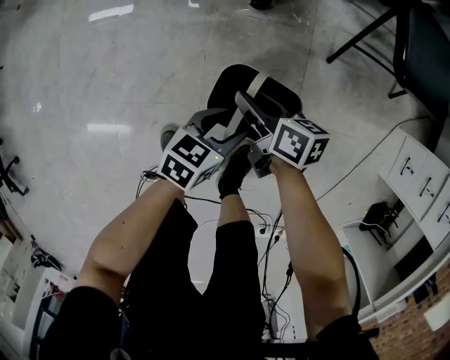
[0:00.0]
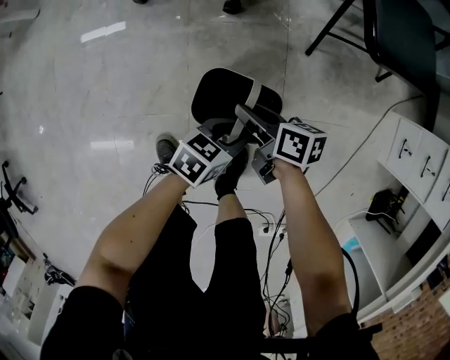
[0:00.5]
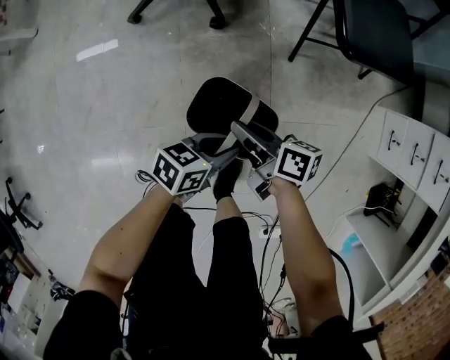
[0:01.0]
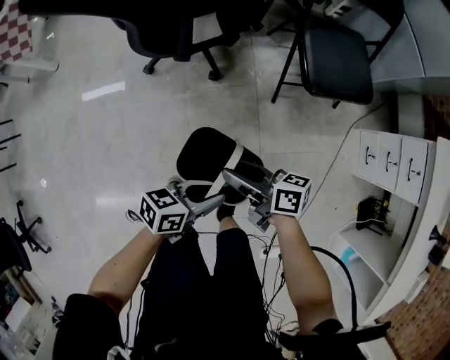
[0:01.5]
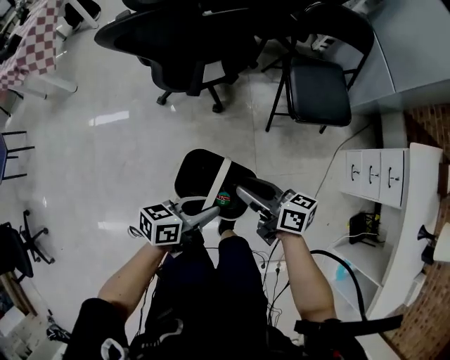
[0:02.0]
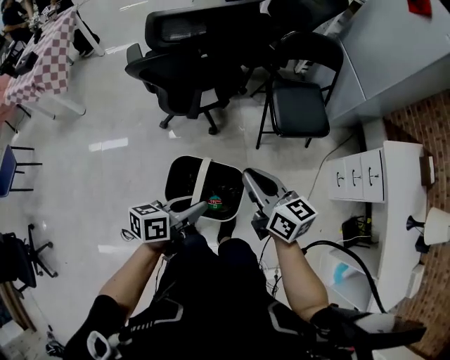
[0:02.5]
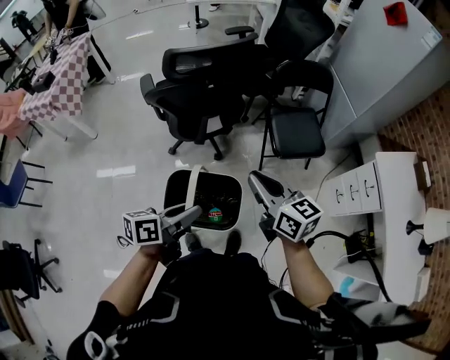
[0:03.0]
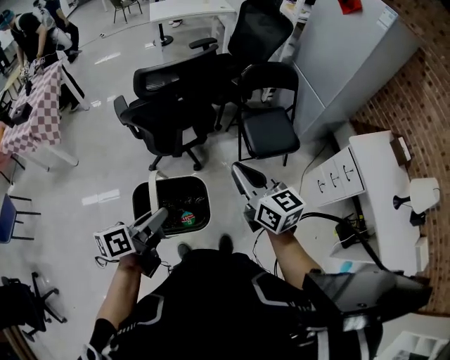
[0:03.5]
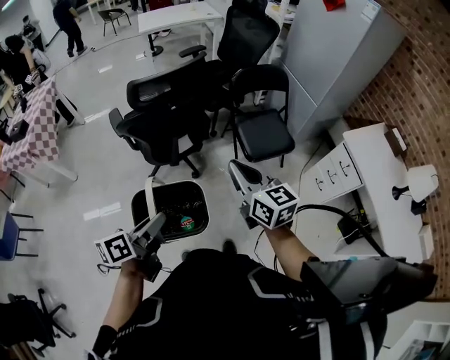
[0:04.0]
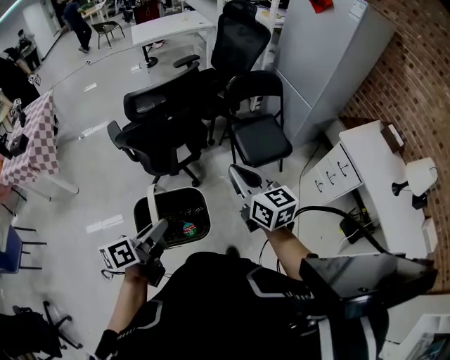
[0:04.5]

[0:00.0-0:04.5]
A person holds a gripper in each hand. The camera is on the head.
0.0 to 2.0 s: Both grippers travel together upward, roughly 40 cm. The left gripper swivels roughly 20 degrees, and closes up.
2.0 to 4.5 s: The right gripper is displaced upward by roughly 30 cm, rotates about 50 degrees, and closes its fingers. The left gripper heads upward and to the left, covering some 30 cm, and changes its angle by about 20 degrees.

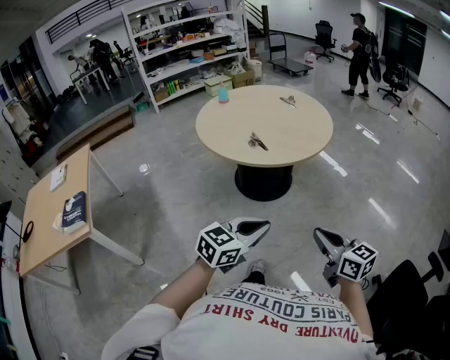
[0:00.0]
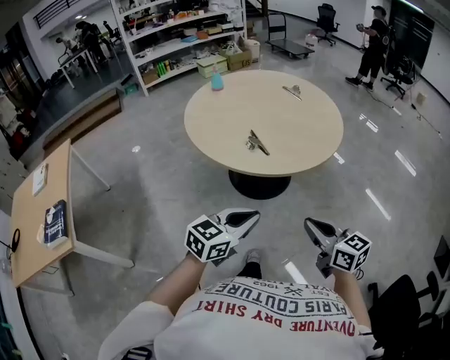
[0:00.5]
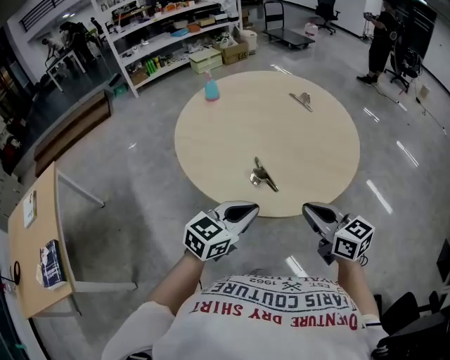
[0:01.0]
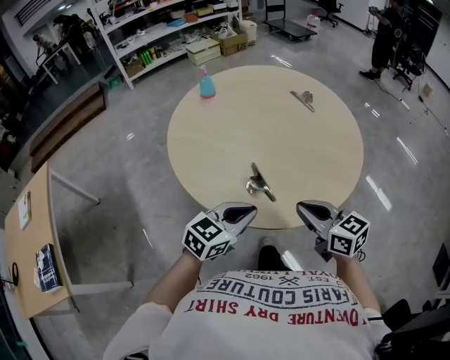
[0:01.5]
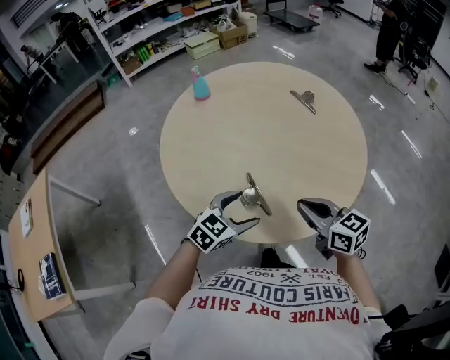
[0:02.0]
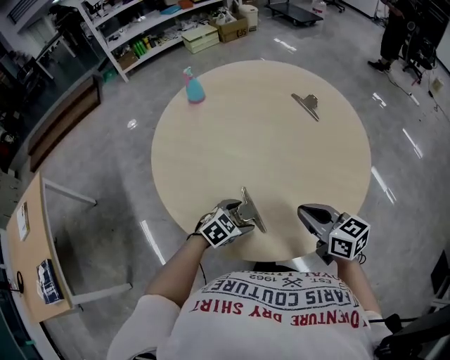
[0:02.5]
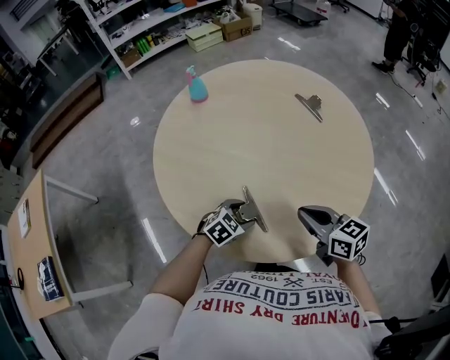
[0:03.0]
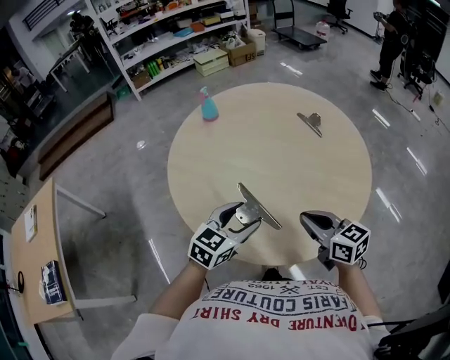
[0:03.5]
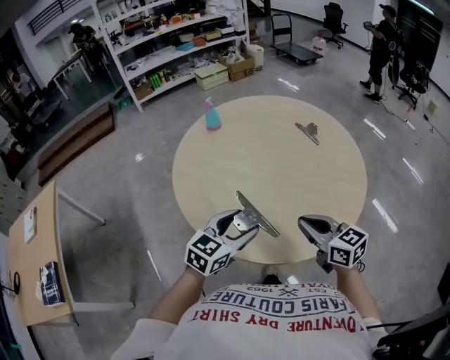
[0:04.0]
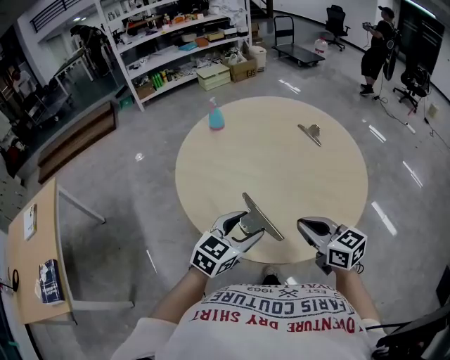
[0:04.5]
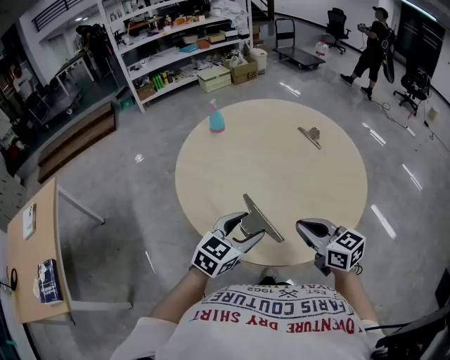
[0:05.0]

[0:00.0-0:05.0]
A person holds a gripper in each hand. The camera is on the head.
0.0 to 2.5 s: The pair of grippers is taken forward, some 60 cm. The left gripper tips its fingers downward by some 30 degrees, and opens.
2.5 to 5.0 s: The left gripper is displaced upward by about 20 cm, and changes its angle by approximately 30 degrees. The right gripper heads backward and upward, covering about 10 cm.

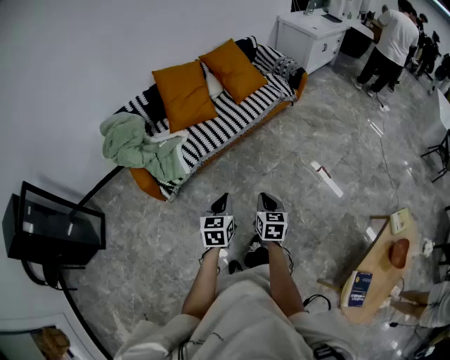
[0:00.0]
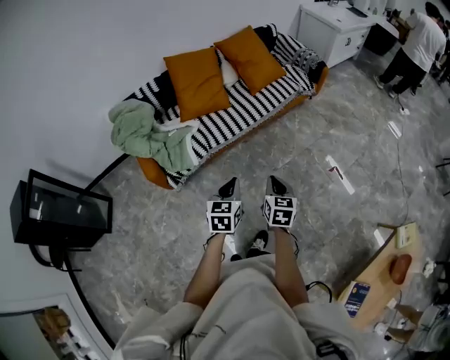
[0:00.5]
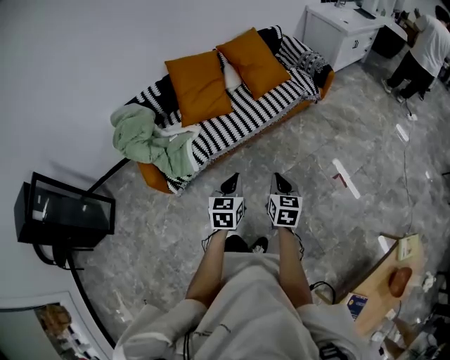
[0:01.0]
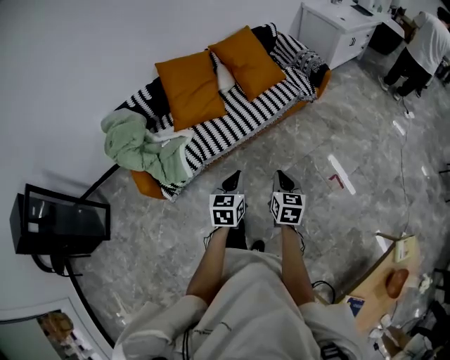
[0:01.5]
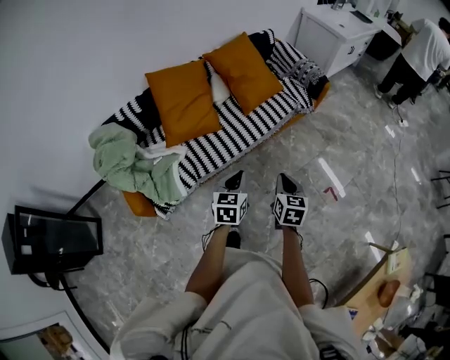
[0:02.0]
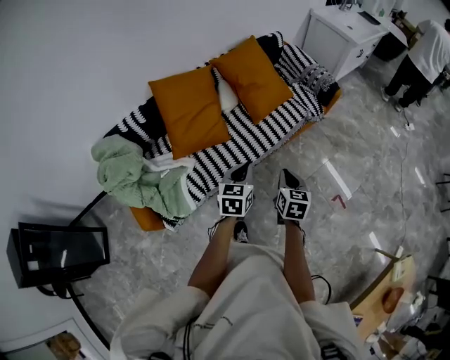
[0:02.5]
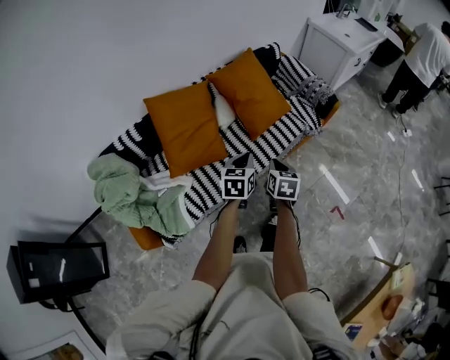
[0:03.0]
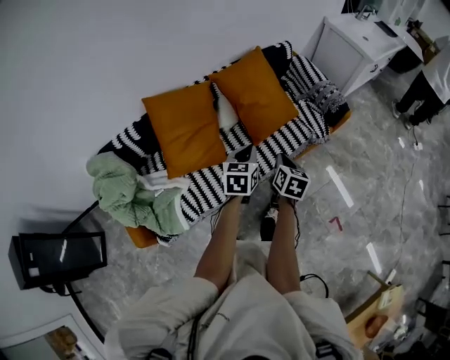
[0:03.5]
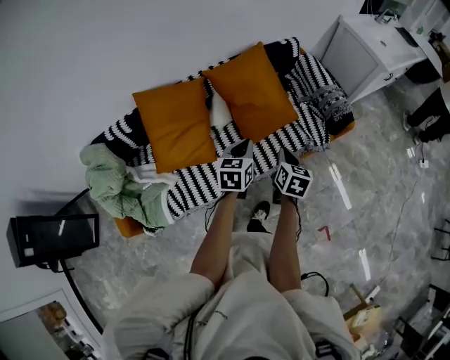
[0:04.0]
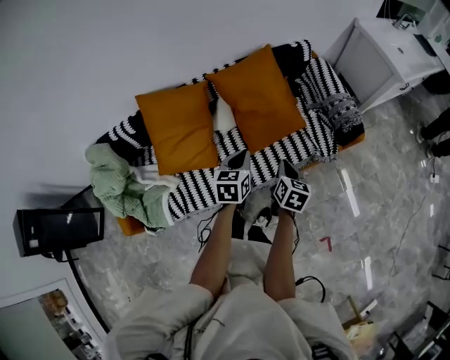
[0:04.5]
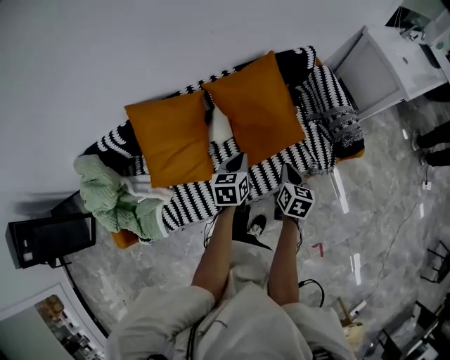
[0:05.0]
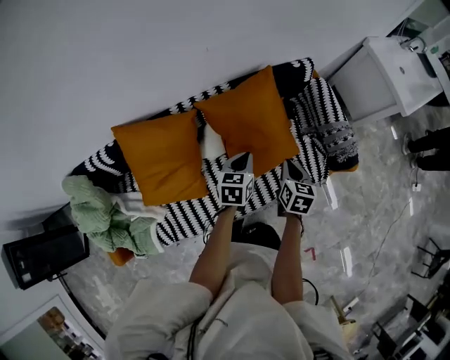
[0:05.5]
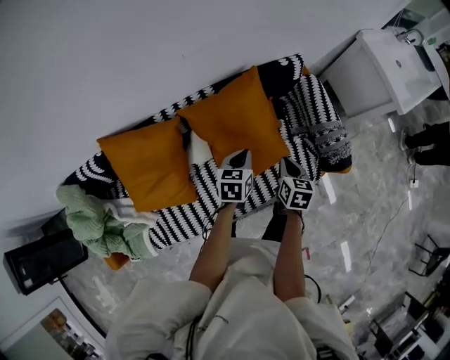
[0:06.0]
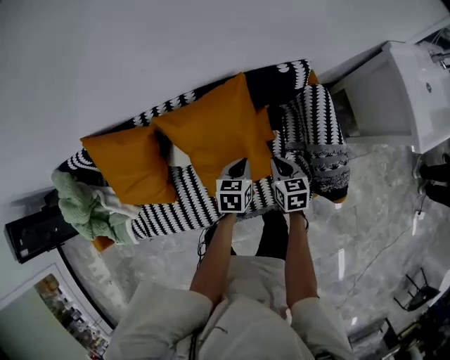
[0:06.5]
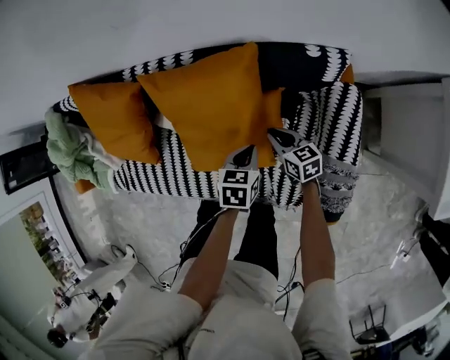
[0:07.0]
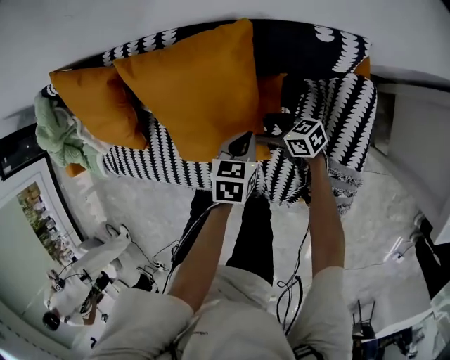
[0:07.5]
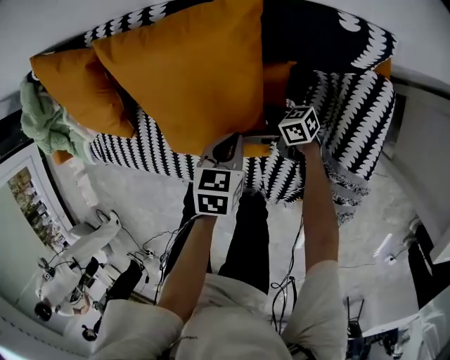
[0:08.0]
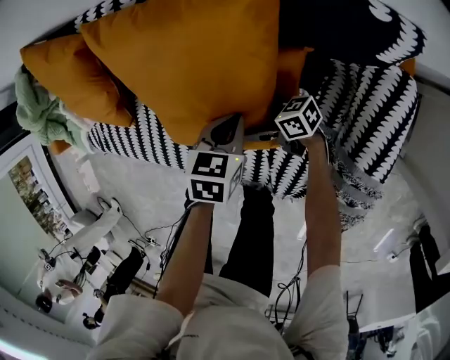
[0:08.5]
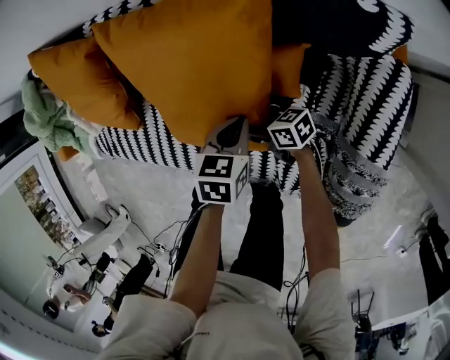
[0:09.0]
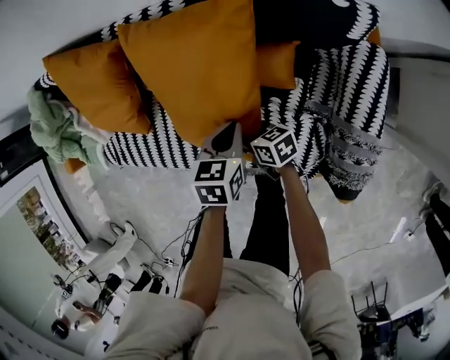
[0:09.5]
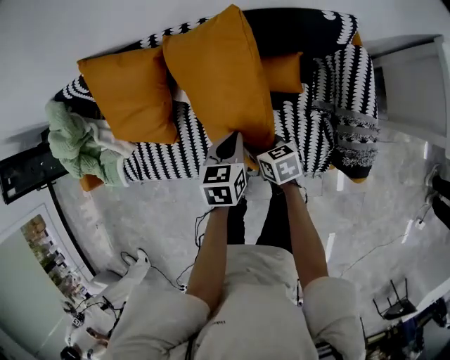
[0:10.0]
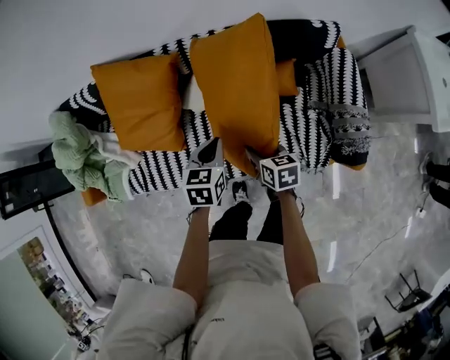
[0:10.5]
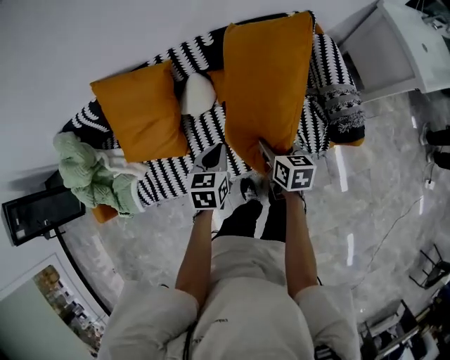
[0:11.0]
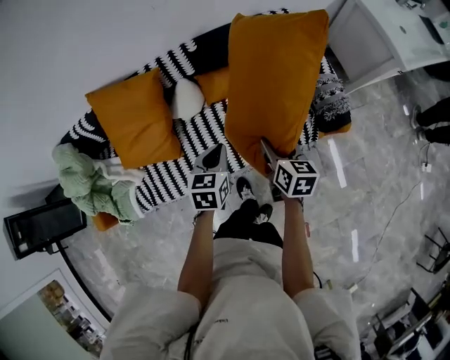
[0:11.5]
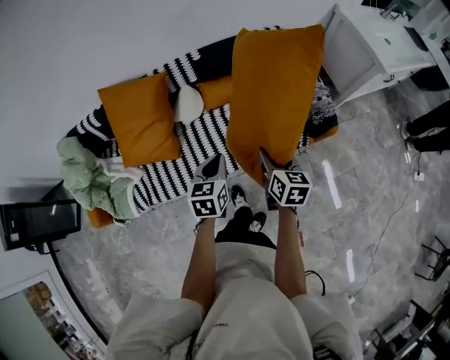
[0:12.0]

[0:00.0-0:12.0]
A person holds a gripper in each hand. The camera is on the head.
0.0 to 2.0 s: Both grippers move forward, about 35 cm.
2.0 to 4.0 s: The pair of grippers is taken forward, about 50 cm.
4.0 to 6.0 s: The grippers both shift forward by roughly 30 cm.
6.0 to 8.0 s: Both grippers travel together downward, approximately 30 cm. The left gripper turns by about 30 degrees, while the right gripper tilts its fingers about 30 degrees upward, and opens.
8.0 to 10.0 s: The left gripper shifts approximately 25 cm to the left and upward. Meanwhile the right gripper heads upward and to the left, covering approximately 25 cm, tips its fingers downward by some 30 degrees, and closes up.
10.0 to 12.0 s: The right gripper ends up about 30 cm from where it was, and turns by roughly 50 degrees, while the left gripper changes place by about 30 cm, and changes its angle by roughly 20 degrees.

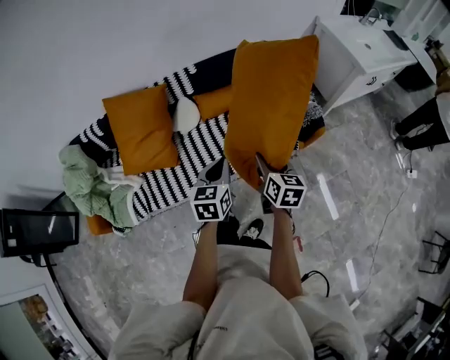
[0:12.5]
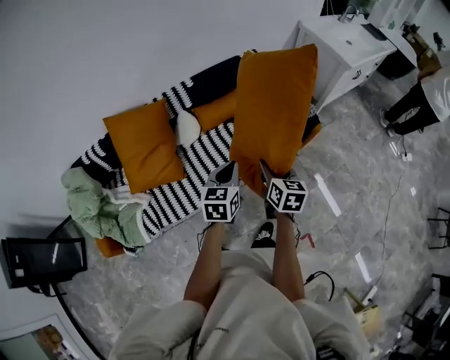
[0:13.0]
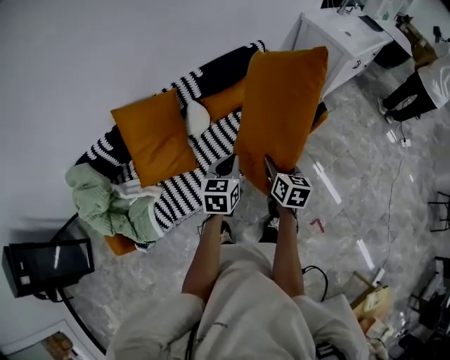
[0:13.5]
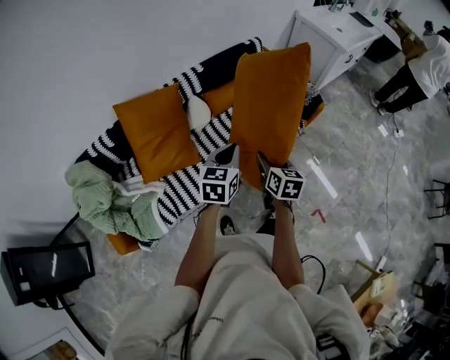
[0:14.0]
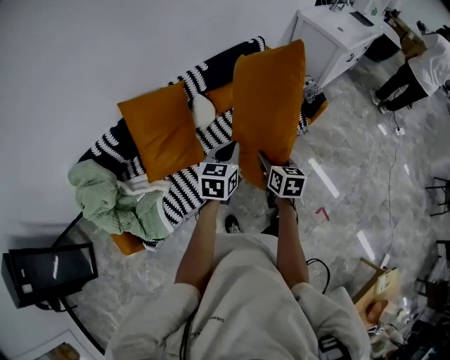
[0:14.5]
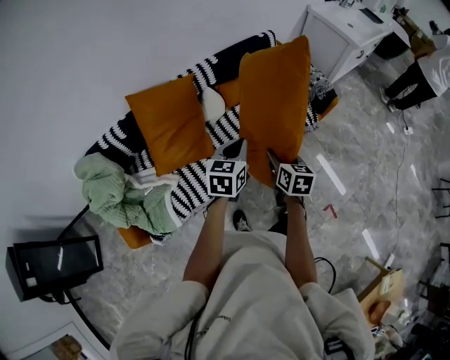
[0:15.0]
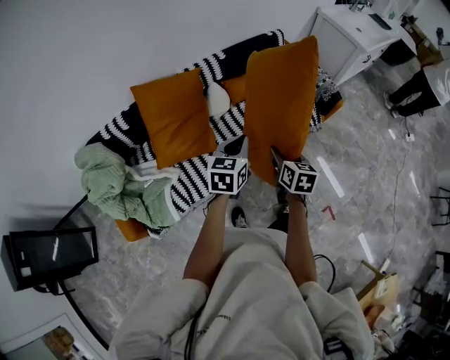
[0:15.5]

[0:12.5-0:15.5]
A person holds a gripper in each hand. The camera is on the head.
12.5 to 14.0 s: Both grippers travel together to the left and backward, approximately 20 cm. The left gripper swivels approximately 20 degrees.
14.0 to 15.5 s: The left gripper shifts about 5 cm to the left.

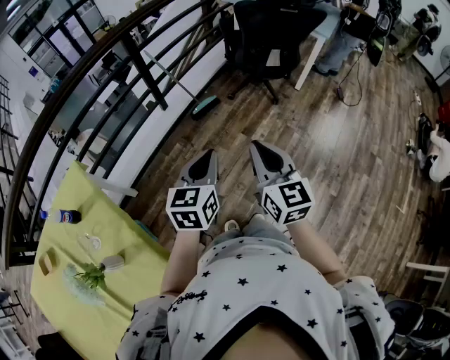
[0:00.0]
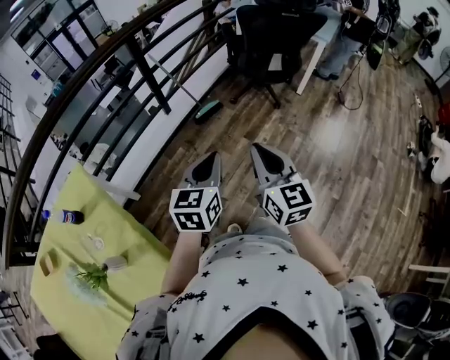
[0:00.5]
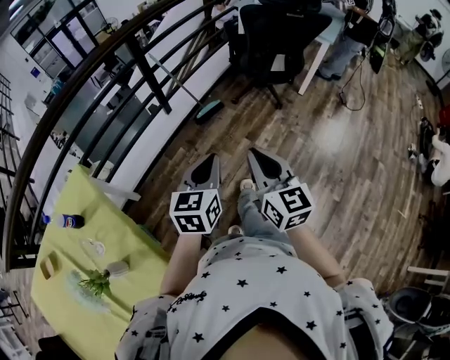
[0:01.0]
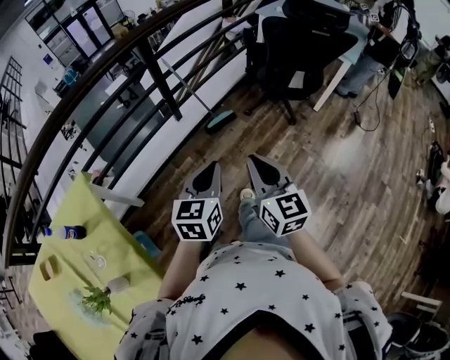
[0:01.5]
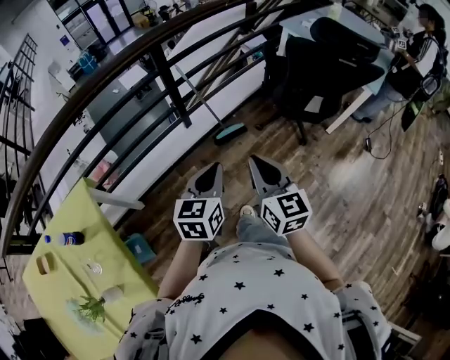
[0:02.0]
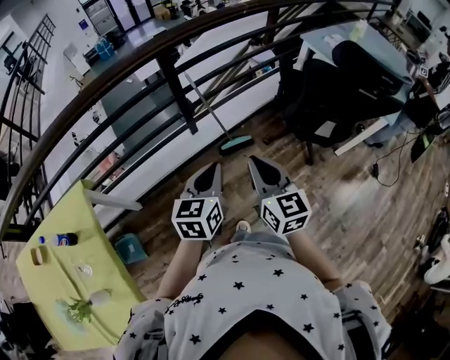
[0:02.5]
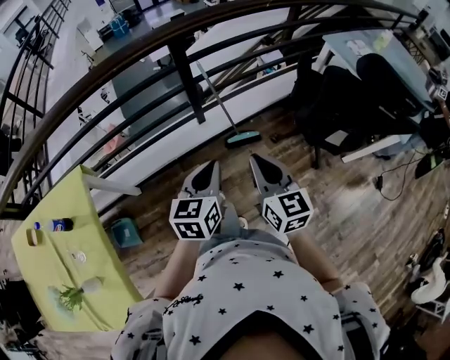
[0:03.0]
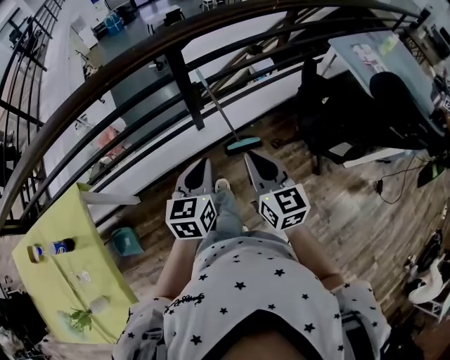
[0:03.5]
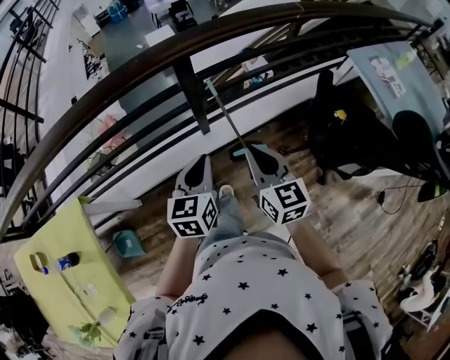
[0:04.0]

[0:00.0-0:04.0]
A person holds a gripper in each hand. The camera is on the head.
0.0 to 2.0 s: Both grippers move forward, about 25 cm.
2.0 to 4.0 s: The grippers both shift forward by about 40 cm. The left gripper swivels approximately 20 degrees.
